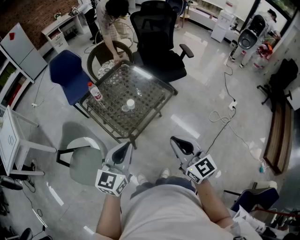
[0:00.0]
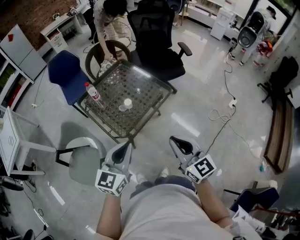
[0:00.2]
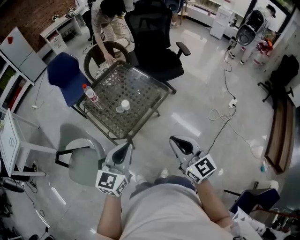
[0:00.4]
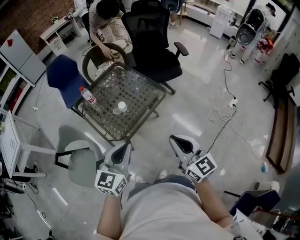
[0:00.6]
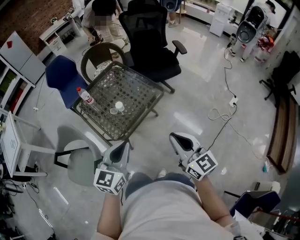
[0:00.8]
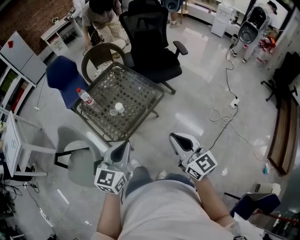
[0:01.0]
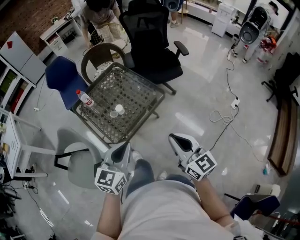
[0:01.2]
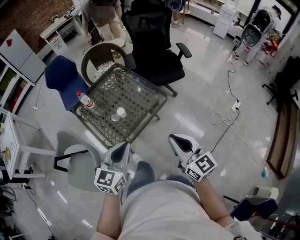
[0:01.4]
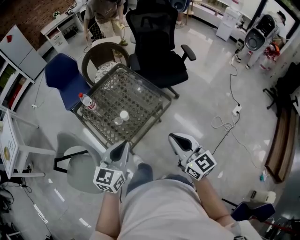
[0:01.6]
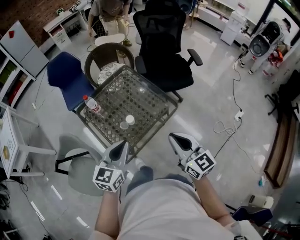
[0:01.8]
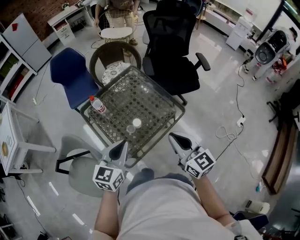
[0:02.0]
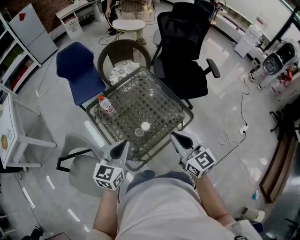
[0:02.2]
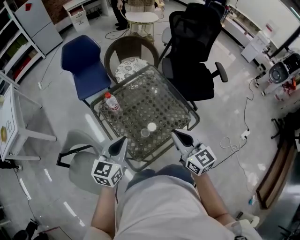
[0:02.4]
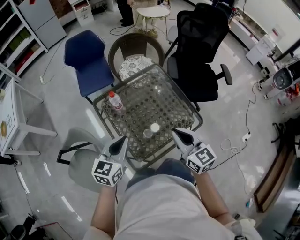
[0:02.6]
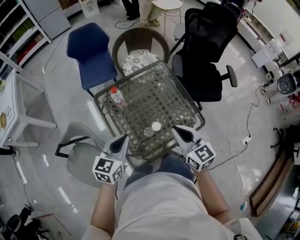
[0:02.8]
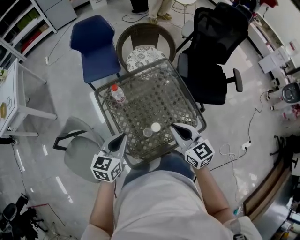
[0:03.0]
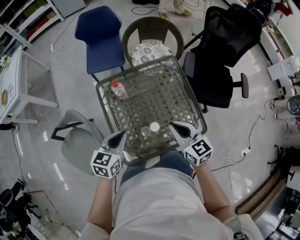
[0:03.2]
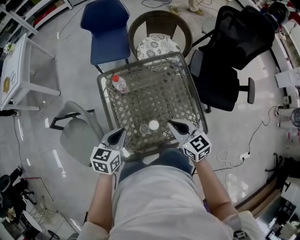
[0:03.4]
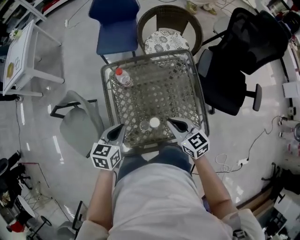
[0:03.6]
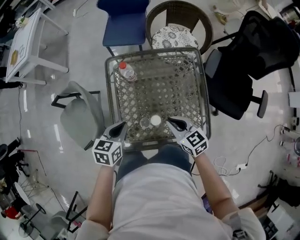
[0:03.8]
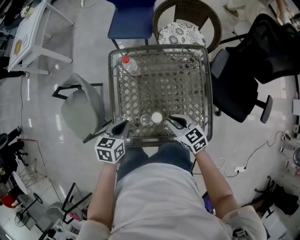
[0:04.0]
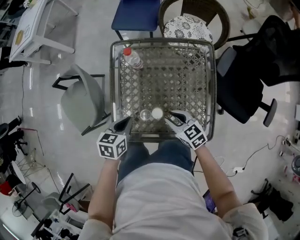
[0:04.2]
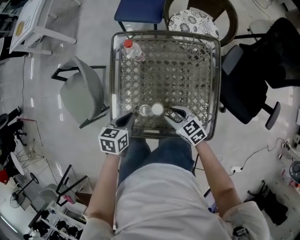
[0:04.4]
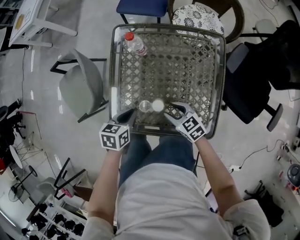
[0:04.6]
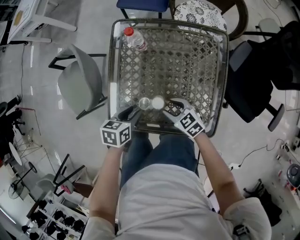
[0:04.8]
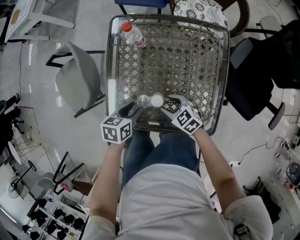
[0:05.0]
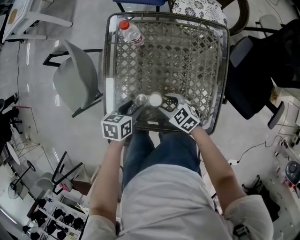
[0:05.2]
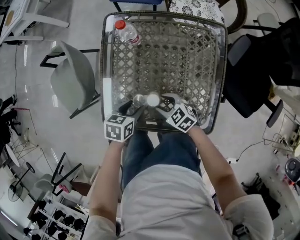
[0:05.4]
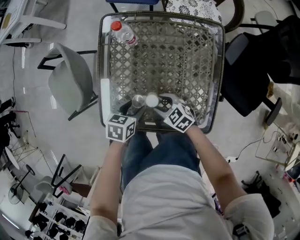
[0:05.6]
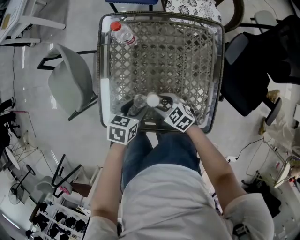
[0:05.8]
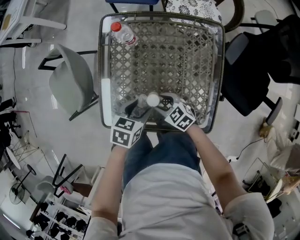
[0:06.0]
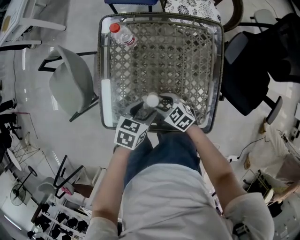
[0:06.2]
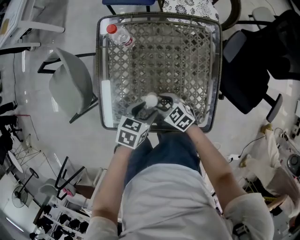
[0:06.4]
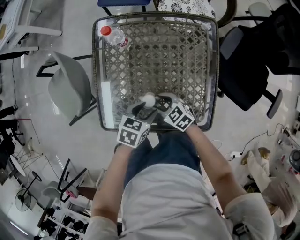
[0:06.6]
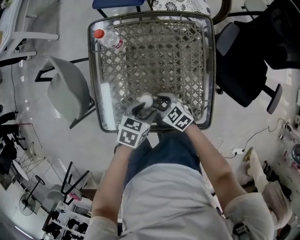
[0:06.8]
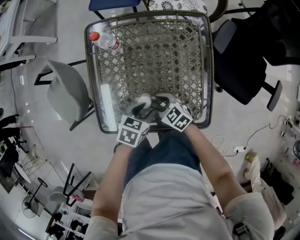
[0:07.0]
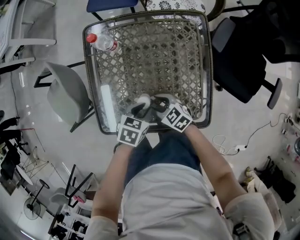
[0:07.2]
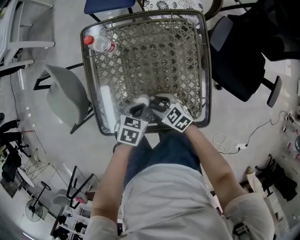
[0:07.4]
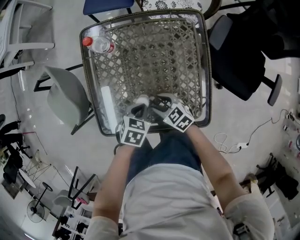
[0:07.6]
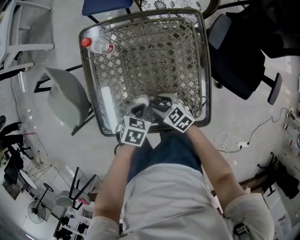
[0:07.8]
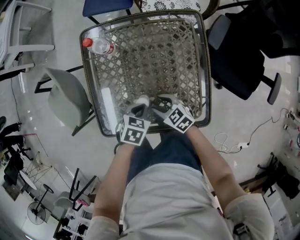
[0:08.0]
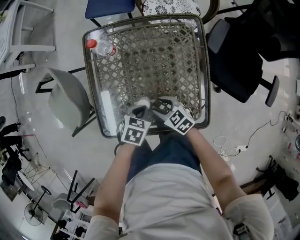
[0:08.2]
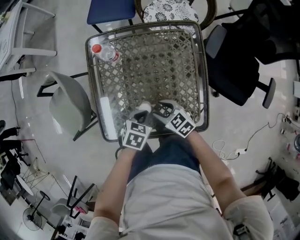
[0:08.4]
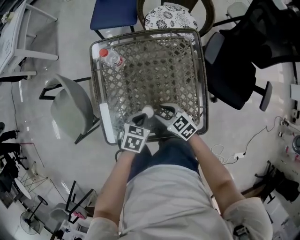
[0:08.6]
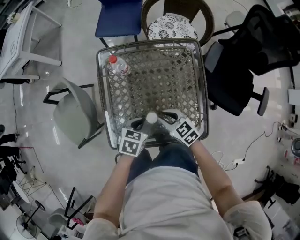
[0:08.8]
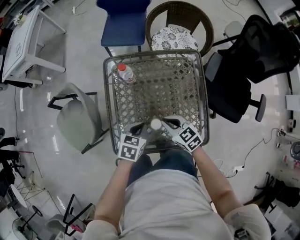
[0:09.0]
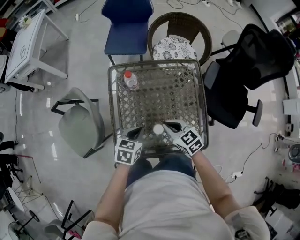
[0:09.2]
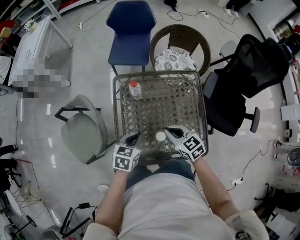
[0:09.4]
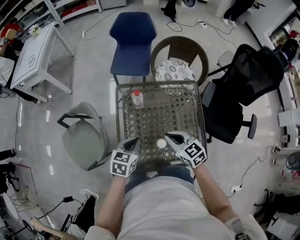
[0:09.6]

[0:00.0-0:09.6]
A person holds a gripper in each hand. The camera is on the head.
0:00.0 to 0:01.6: Both grippers move forward and to the right, approximately 15 cm.
0:01.6 to 0:03.2: The right gripper is displaced forward and to the left by about 35 cm, and rotates approximately 30 degrees. Meanwhile the left gripper is displaced forward, to the left and downward by roughly 30 cm, and rotates some 30 degrees.
0:03.2 to 0:04.8: Both grippers travel together downward, some 25 cm. The left gripper rotates some 40 degrees, and opens. The right gripper changes its angle by approximately 50 degrees, and opens its fingers.
0:04.8 to 0:06.4: The left gripper ends up about 10 cm from where it was.
0:06.4 to 0:08.0: The left gripper closes.
0:08.0 to 0:09.6: The right gripper moves upward, approximately 25 cm, and closes its fingers. Meanwhile the left gripper goes approximately 25 cm upward and to the left, and rotates approximately 30 degrees.

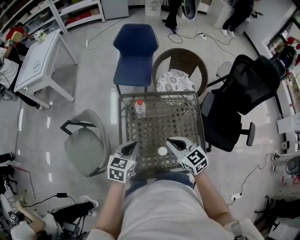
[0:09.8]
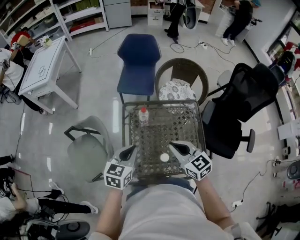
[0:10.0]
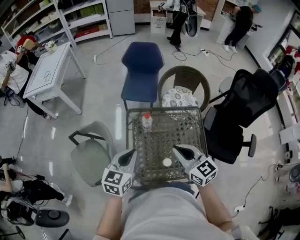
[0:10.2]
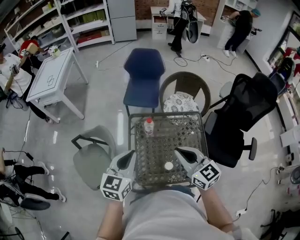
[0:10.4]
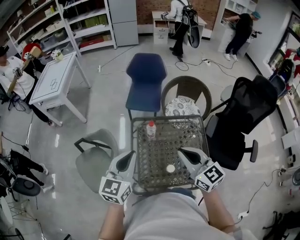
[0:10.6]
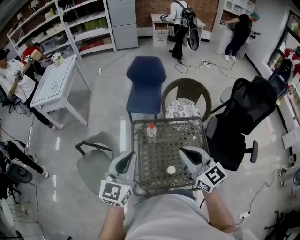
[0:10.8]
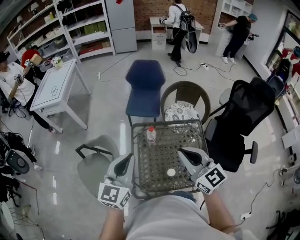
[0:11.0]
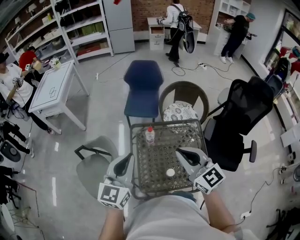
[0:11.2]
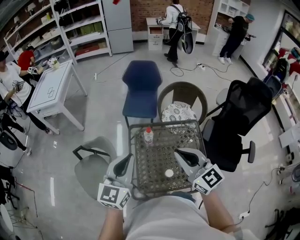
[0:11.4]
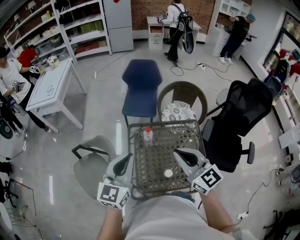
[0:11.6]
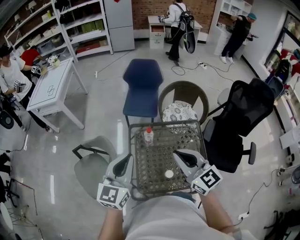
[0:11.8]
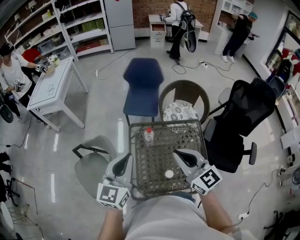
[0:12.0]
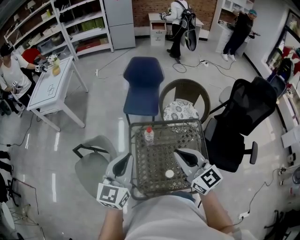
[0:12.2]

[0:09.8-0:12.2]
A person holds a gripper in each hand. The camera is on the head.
0:09.8 to 0:11.0: Both grippers travel together upward, roughly 25 cm. The right gripper turns by roughly 20 degrees. The left gripper tilts its fingers about 30 degrees upward.
0:11.0 to 0:12.2: The grippers make only small movements.

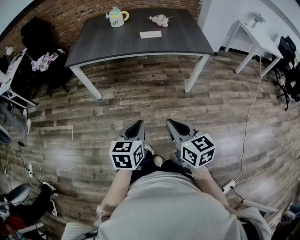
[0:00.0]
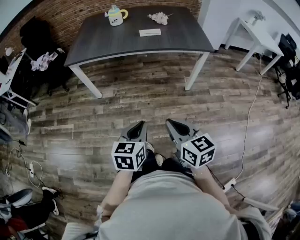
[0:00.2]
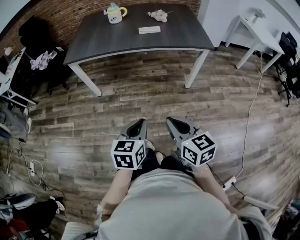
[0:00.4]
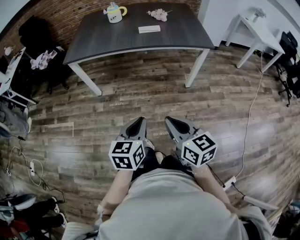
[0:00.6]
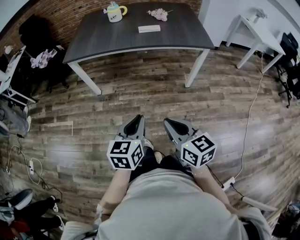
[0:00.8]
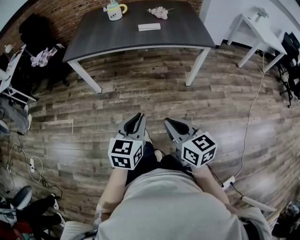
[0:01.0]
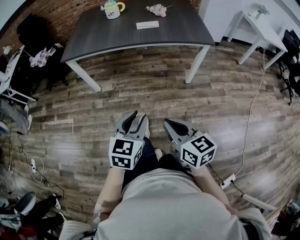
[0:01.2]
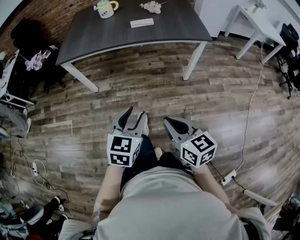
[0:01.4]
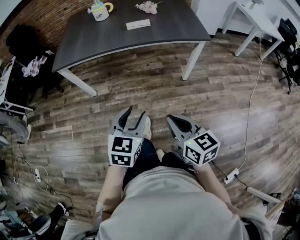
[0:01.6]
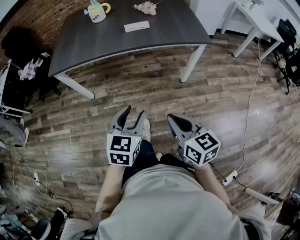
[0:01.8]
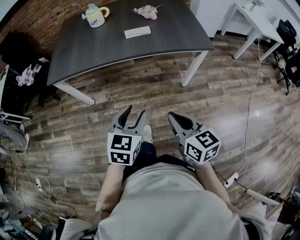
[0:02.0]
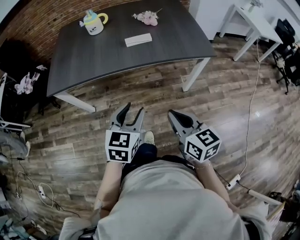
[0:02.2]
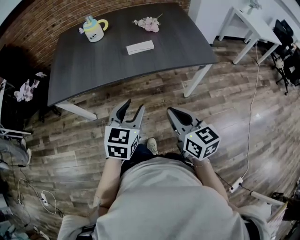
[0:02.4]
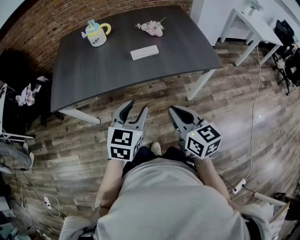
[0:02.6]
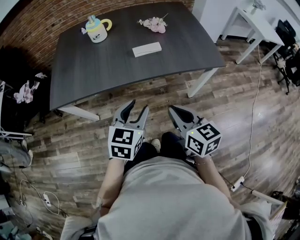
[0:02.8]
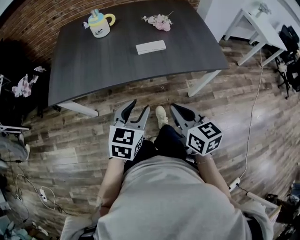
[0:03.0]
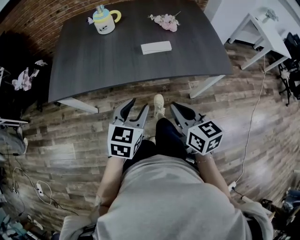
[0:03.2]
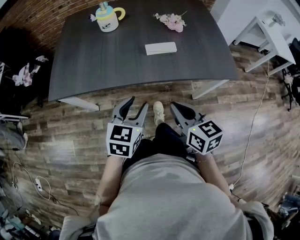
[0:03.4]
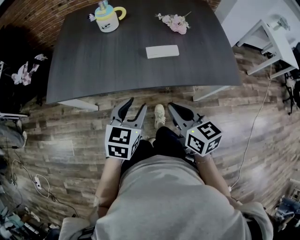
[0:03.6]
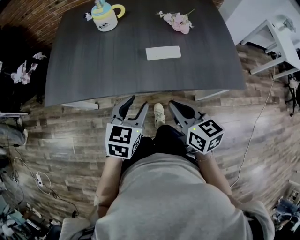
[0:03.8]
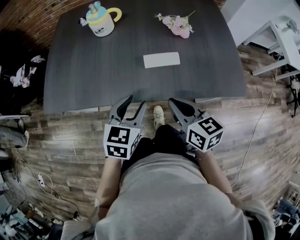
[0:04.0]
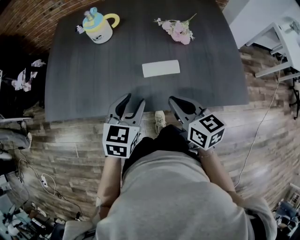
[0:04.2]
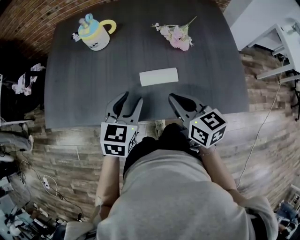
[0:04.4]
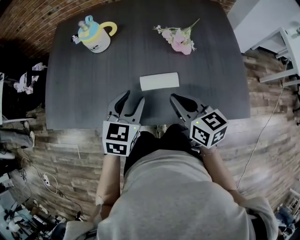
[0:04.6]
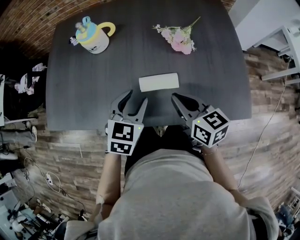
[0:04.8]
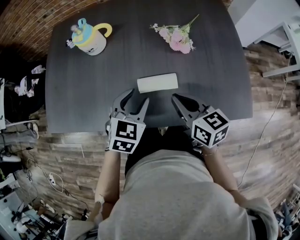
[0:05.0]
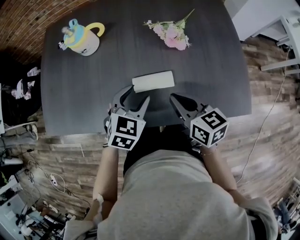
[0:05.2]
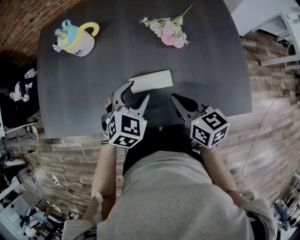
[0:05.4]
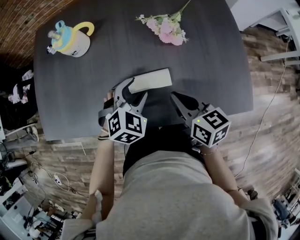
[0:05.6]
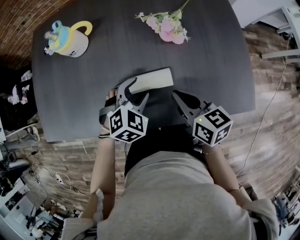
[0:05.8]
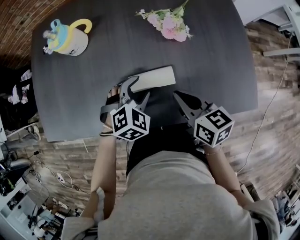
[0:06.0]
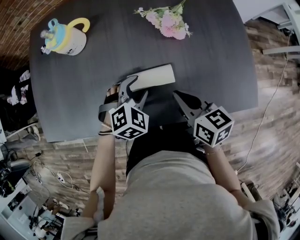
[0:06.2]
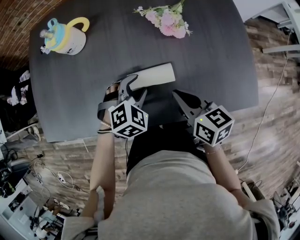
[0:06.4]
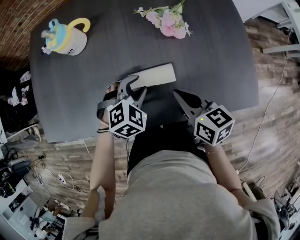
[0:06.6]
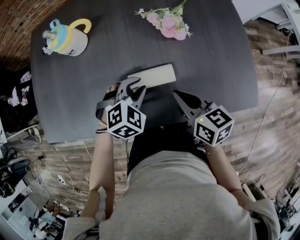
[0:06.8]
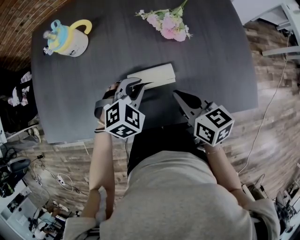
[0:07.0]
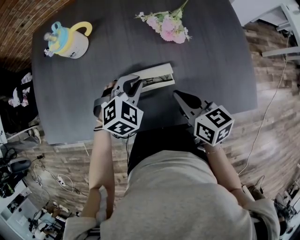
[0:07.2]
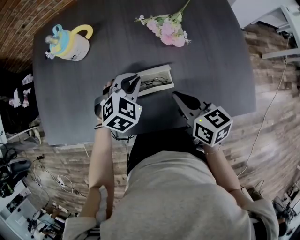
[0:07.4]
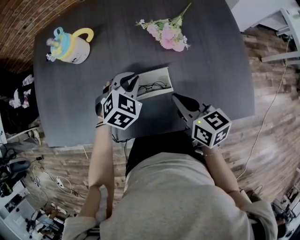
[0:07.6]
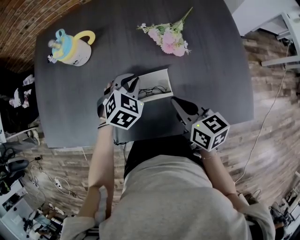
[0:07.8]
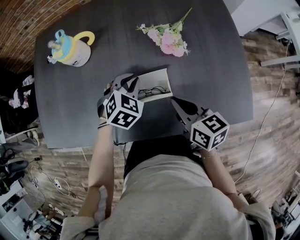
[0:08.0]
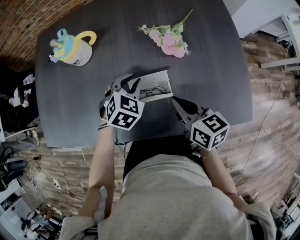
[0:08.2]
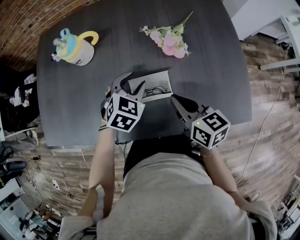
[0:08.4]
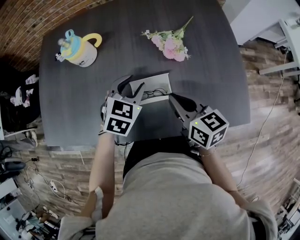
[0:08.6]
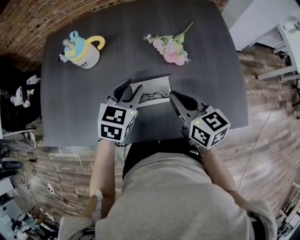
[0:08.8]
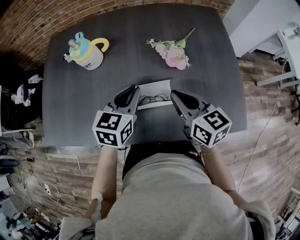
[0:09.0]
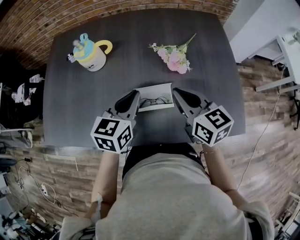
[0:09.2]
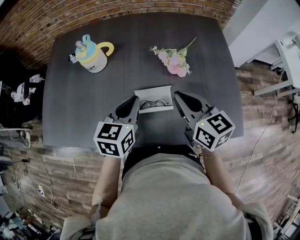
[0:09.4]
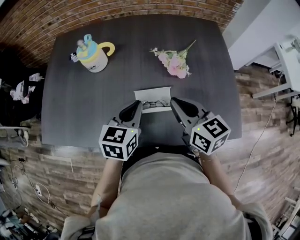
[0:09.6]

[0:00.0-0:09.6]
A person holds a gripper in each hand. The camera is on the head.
0:00.0 to 0:01.6: The right gripper changes place by some 5 cm. The left gripper moves forward, roughly 5 cm, and opens its fingers.
0:01.6 to 0:03.2: Both grippers travel together forward, some 30 cm.
0:03.2 to 0:04.8: Both grippers travel together forward, approximately 30 cm.
0:04.8 to 0:06.4: The right gripper heads downward, covering roughly 5 cm, while the left gripper is displaced downward by about 10 cm, and changes its angle by some 40 degrees.
0:06.4 to 0:08.0: The left gripper goes some 10 cm forward, and closes up.
0:08.0 to 0:09.6: The left gripper moves upward and backward, roughly 15 cm, swivels roughly 50 degrees, and opens, then closes once more. The right gripper moves upward, some 10 cm.

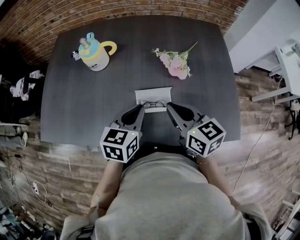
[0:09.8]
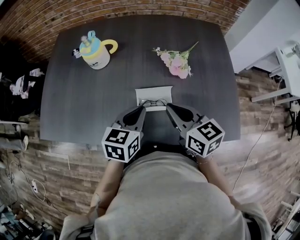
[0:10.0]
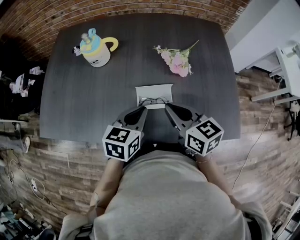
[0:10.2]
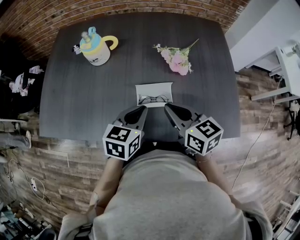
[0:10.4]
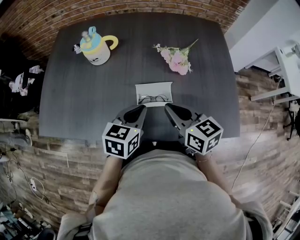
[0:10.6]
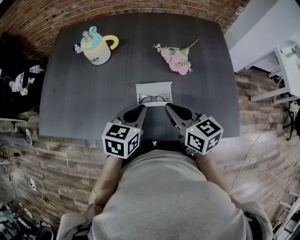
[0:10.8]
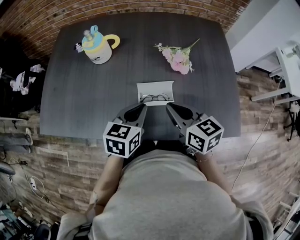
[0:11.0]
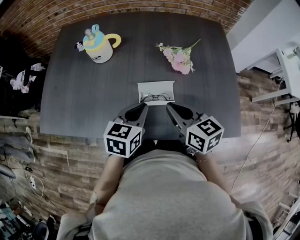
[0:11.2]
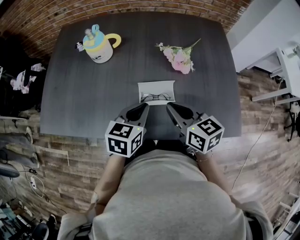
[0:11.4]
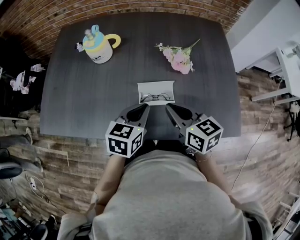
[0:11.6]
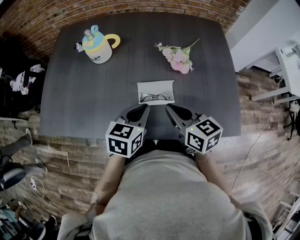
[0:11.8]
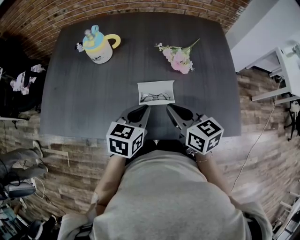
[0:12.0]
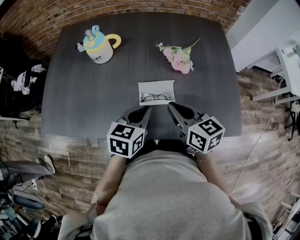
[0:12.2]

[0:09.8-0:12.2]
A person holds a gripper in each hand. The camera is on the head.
0:09.8 to 0:12.2: The grippers stay close to where they were, moving slightly.
